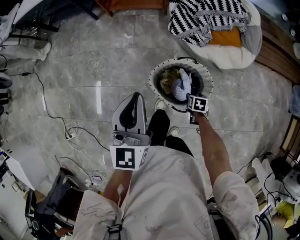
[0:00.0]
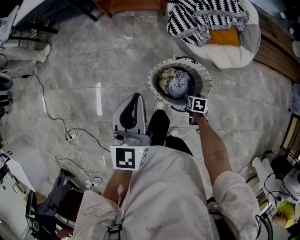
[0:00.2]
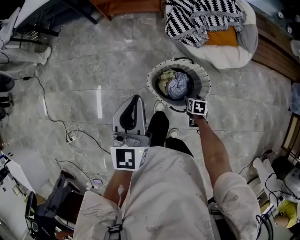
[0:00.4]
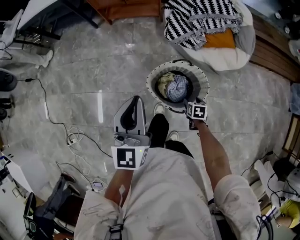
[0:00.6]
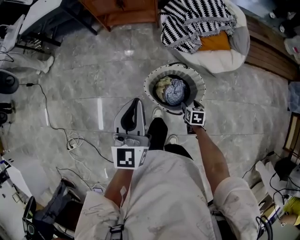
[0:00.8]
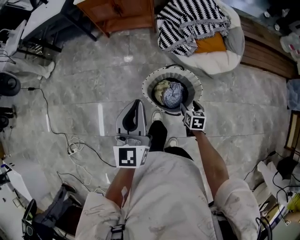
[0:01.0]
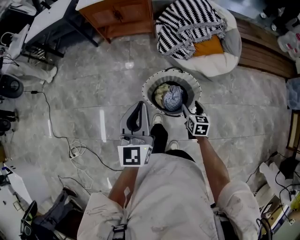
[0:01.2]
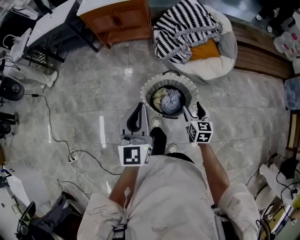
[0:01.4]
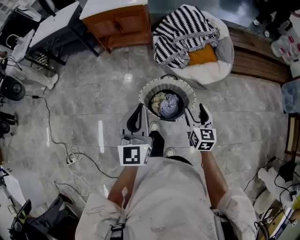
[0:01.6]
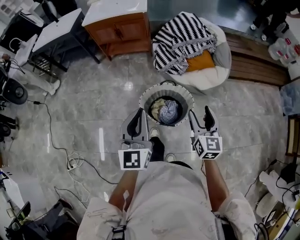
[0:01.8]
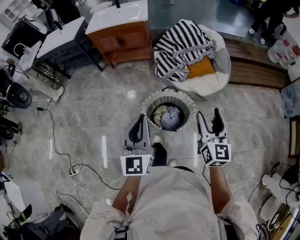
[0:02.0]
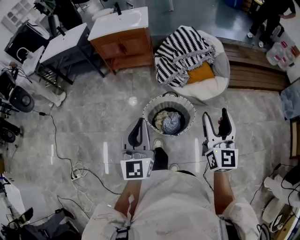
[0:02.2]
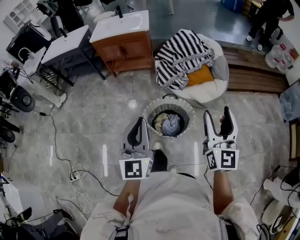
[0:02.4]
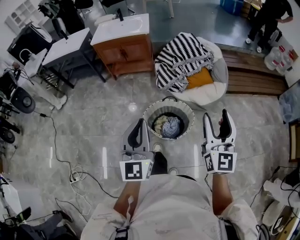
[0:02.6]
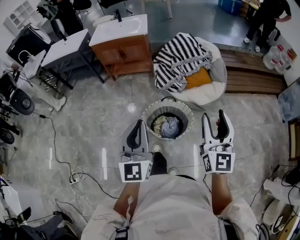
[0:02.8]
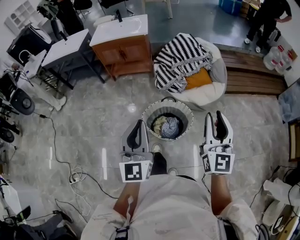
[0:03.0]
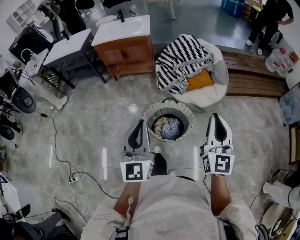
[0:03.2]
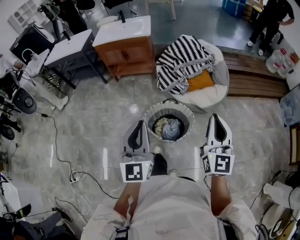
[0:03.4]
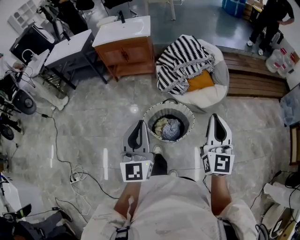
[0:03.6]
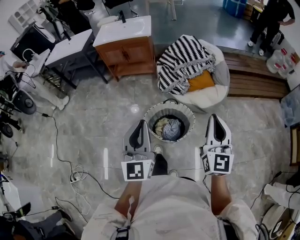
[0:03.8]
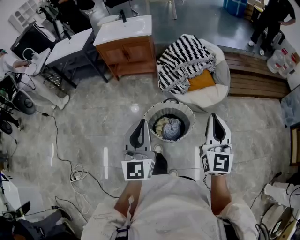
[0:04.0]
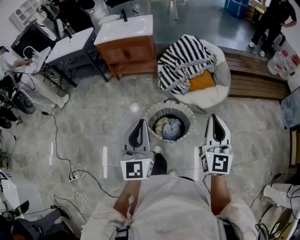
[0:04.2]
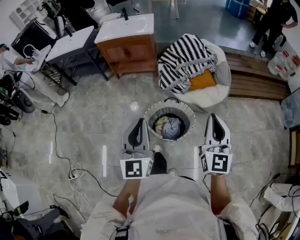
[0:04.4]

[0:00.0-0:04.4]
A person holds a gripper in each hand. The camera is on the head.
0:00.0 to 0:01.4: The right gripper heads upward, covering approximately 25 cm, and angles its fingers upward, by some 40 degrees, while the left gripper shifts by some 15 cm.
0:01.4 to 0:03.0: The left gripper shifts about 15 cm upward and backward. Meanwhile the right gripper travels upward by approximately 35 cm, angles its fingers upward, by about 40 degrees, and closes its fingers.
0:03.0 to 0:04.4: The right gripper closes.

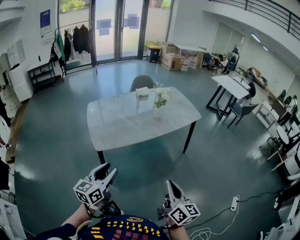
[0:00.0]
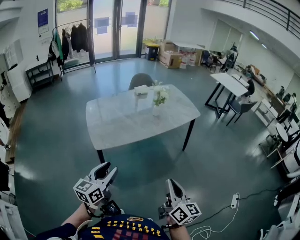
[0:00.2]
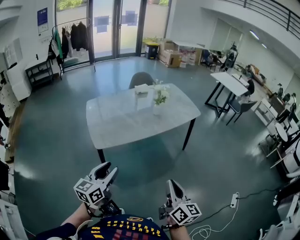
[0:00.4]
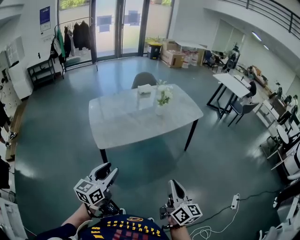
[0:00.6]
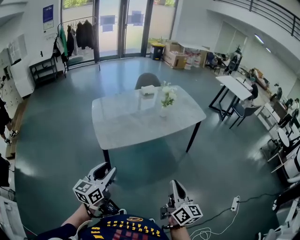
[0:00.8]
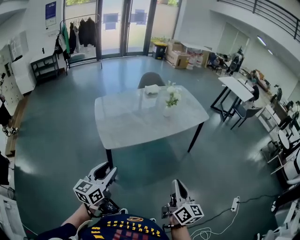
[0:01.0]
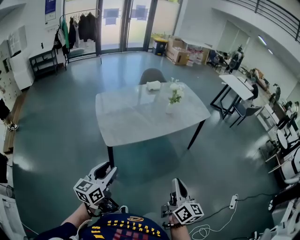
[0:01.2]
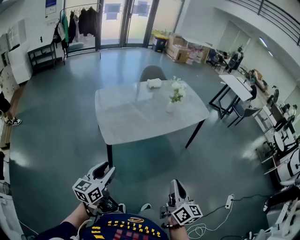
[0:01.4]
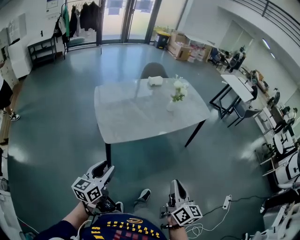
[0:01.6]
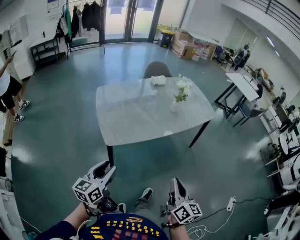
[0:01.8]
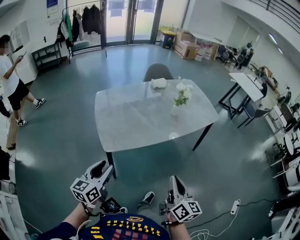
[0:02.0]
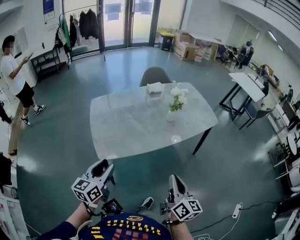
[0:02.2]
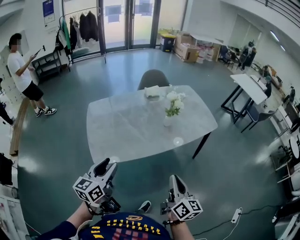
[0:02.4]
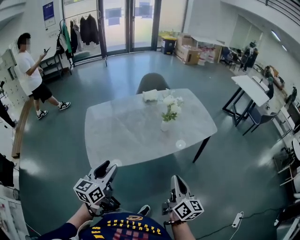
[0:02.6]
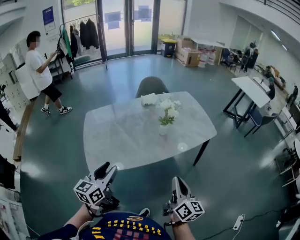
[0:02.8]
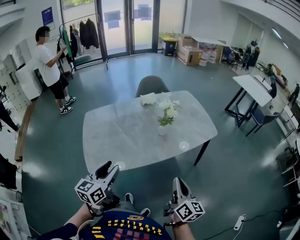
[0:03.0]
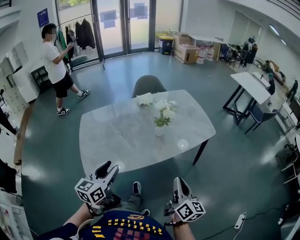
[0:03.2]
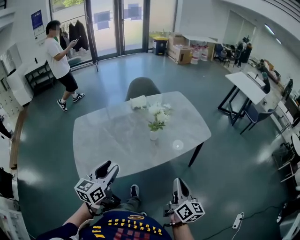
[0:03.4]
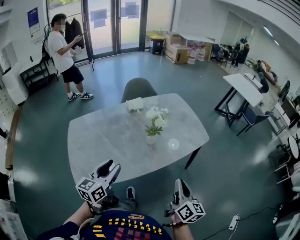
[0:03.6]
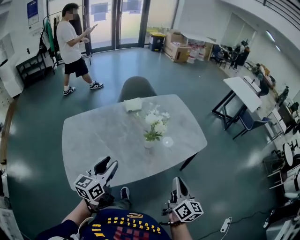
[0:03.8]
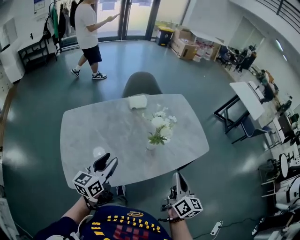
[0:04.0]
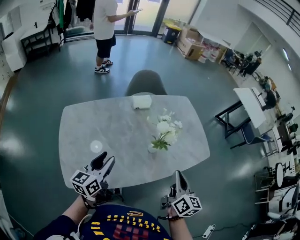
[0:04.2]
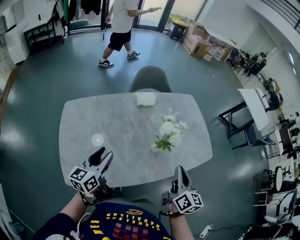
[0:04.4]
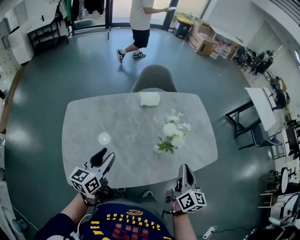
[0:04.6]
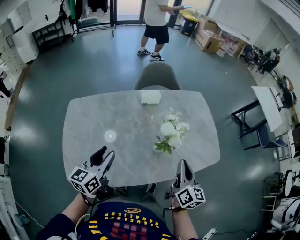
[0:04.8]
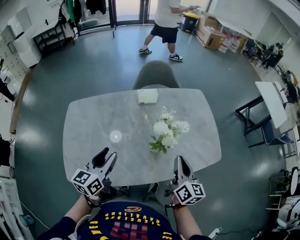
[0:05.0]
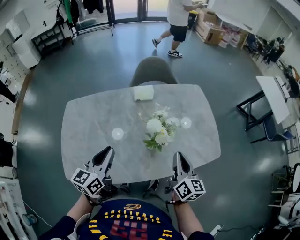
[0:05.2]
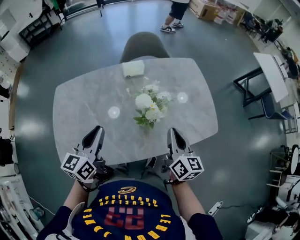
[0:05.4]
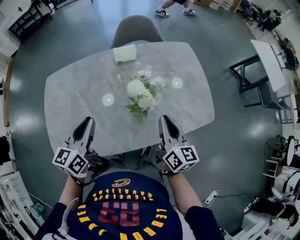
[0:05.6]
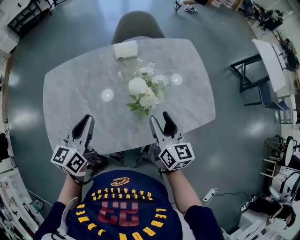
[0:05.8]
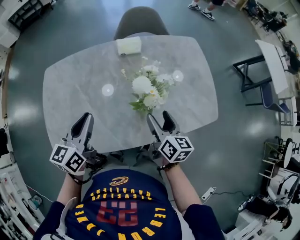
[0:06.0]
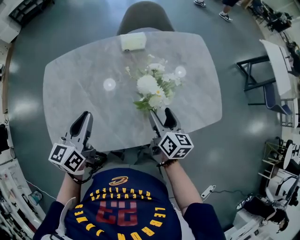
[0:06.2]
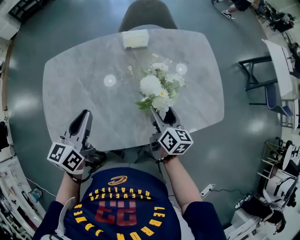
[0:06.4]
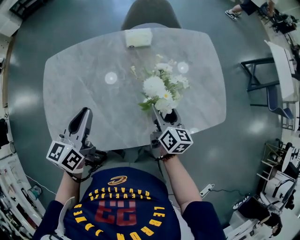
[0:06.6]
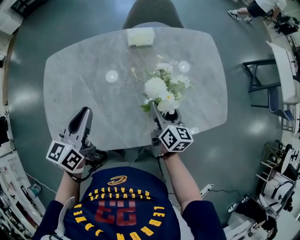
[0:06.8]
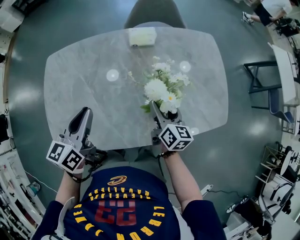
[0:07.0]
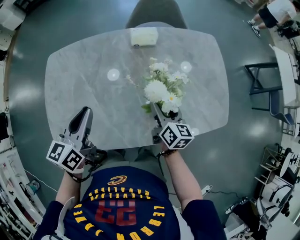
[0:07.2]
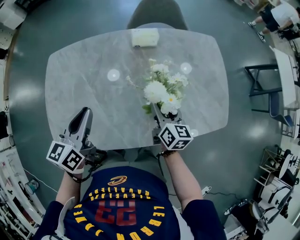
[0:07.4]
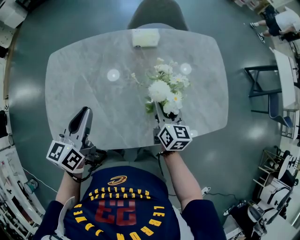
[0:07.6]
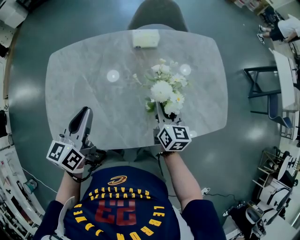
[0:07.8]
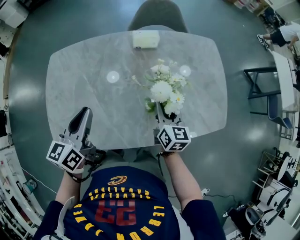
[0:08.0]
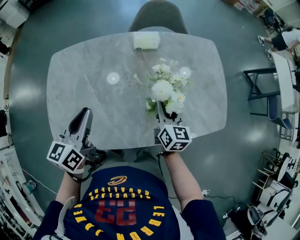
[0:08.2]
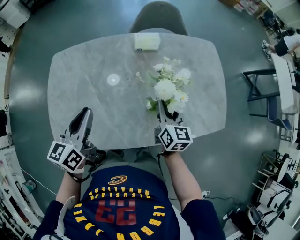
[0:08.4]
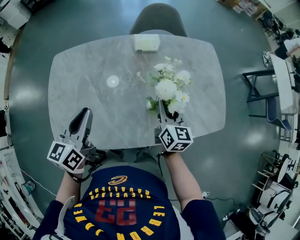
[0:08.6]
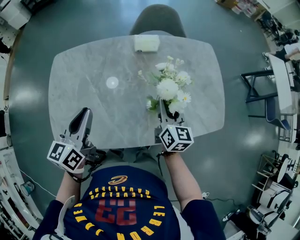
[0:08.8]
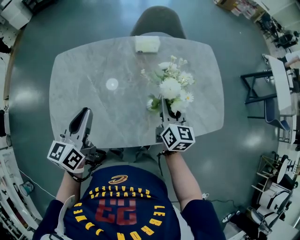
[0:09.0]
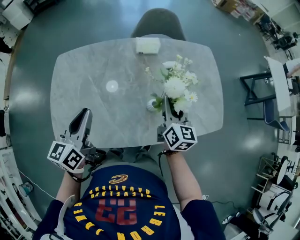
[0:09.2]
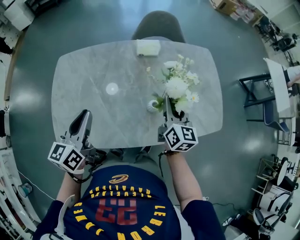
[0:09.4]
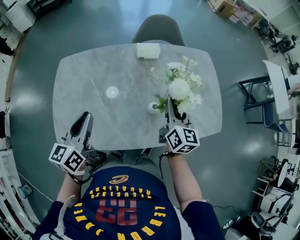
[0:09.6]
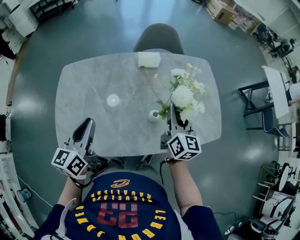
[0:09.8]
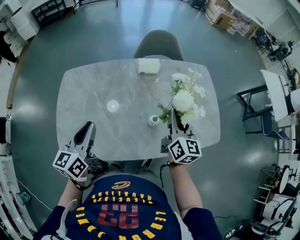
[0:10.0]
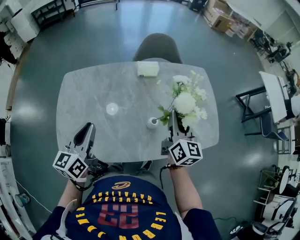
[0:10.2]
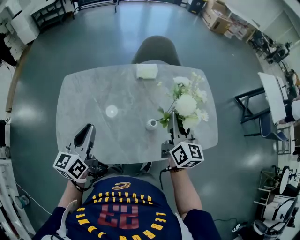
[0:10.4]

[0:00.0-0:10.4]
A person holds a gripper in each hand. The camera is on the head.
0:00.0 to 0:01.4: Both grippers travel together to the left, about 10 cm.
0:01.4 to 0:03.0: Both grippers move forward and to the right, about 35 cm.
0:03.0 to 0:04.4: Both grippers move forward, some 30 cm.
0:04.4 to 0:06.0: The left gripper goes roughly 10 cm to the right, and closes its fingers. The right gripper is displaced downward and forward by roughly 15 cm, changes its angle by some 20 degrees, and opens its fingers.
0:06.0 to 0:07.4: The right gripper travels forward and downward by about 10 cm. Meanwhile the left gripper ends up roughly 5 cm from where it was.
0:07.4 to 0:09.0: The left gripper moves about 5 cm. The right gripper travels upward by approximately 5 cm, and closes up.
0:09.0 to 0:10.4: The right gripper goes roughly 10 cm upward.

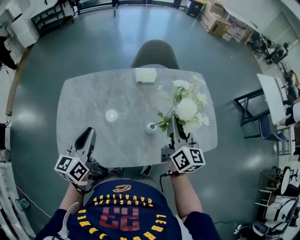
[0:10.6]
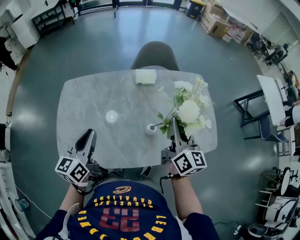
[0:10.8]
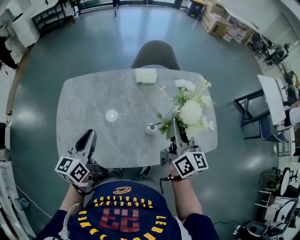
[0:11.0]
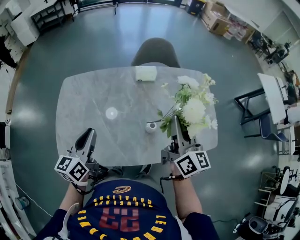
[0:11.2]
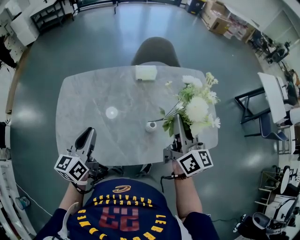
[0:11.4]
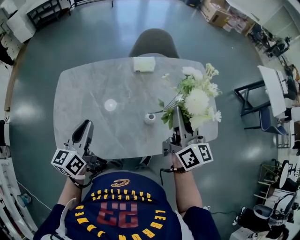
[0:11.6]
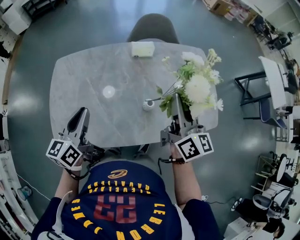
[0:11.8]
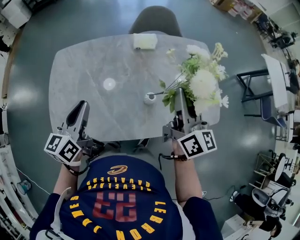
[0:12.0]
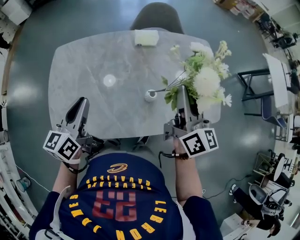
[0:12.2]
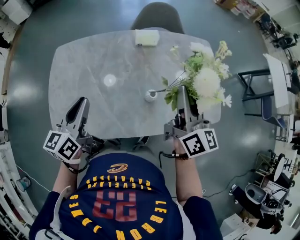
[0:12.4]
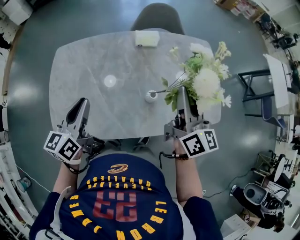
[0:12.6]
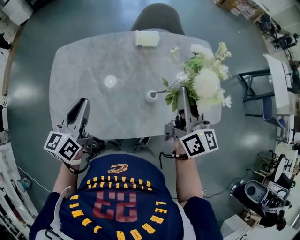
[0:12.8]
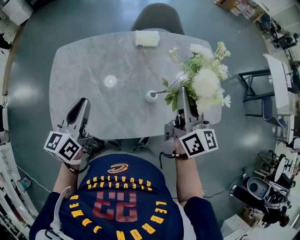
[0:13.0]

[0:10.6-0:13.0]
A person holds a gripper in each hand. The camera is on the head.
0:10.6 to 0:13.0: The grippers stay close to where they were, moving slightly.

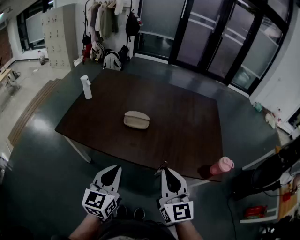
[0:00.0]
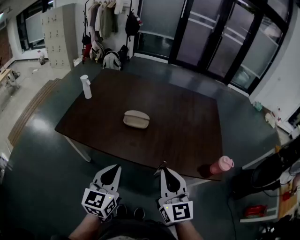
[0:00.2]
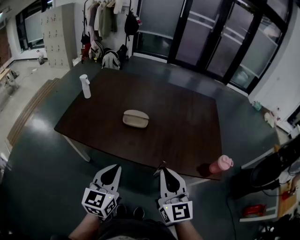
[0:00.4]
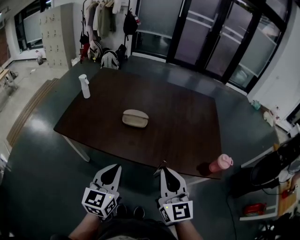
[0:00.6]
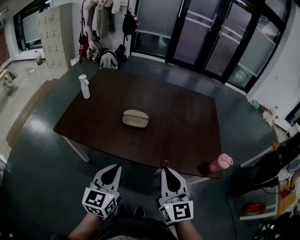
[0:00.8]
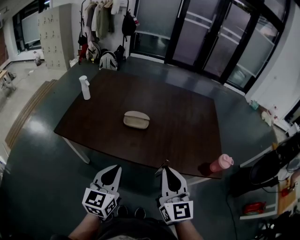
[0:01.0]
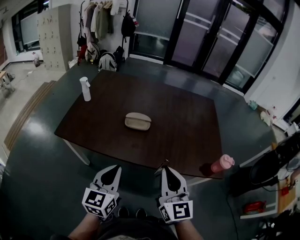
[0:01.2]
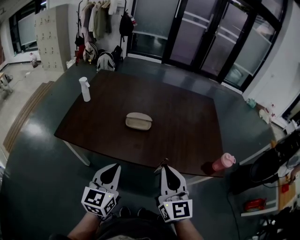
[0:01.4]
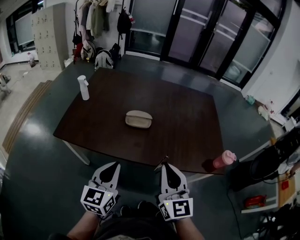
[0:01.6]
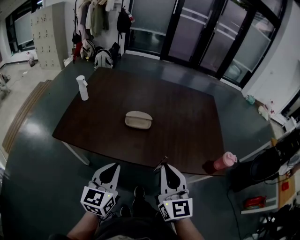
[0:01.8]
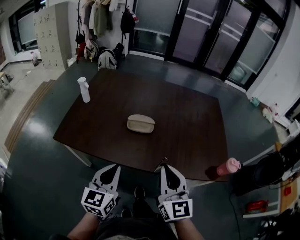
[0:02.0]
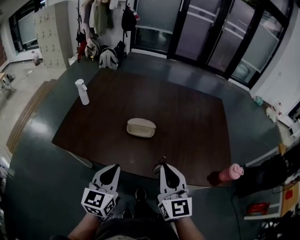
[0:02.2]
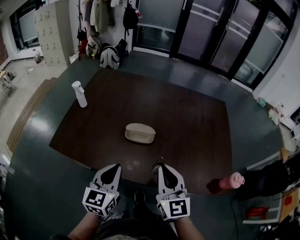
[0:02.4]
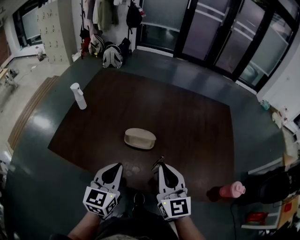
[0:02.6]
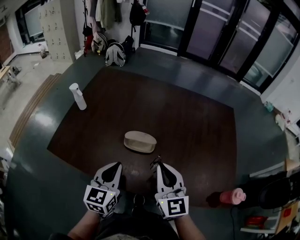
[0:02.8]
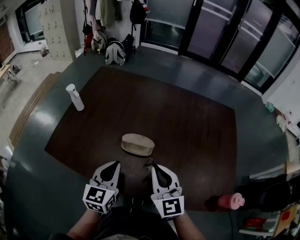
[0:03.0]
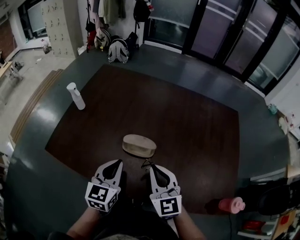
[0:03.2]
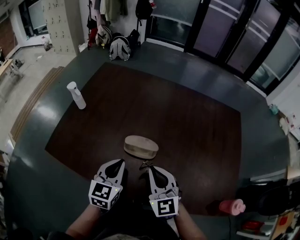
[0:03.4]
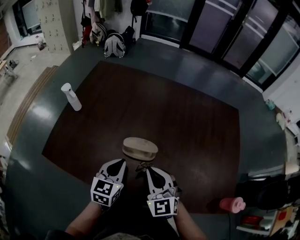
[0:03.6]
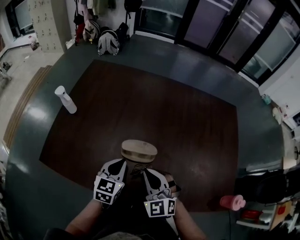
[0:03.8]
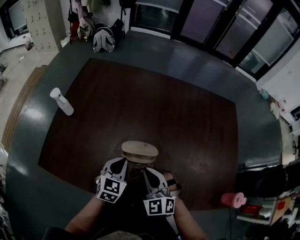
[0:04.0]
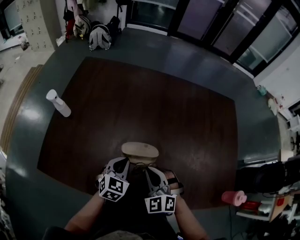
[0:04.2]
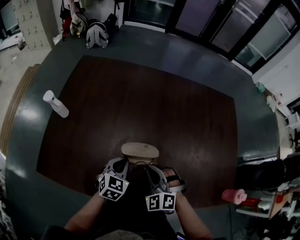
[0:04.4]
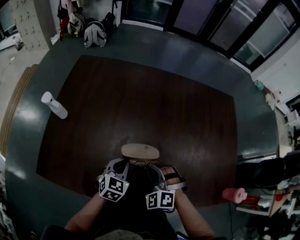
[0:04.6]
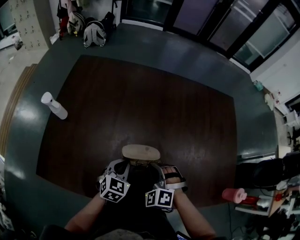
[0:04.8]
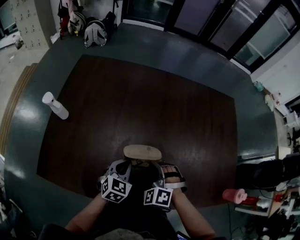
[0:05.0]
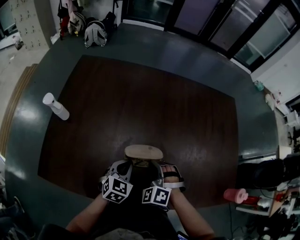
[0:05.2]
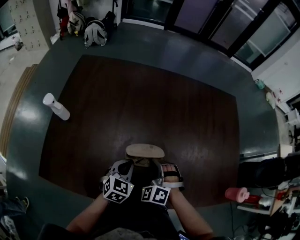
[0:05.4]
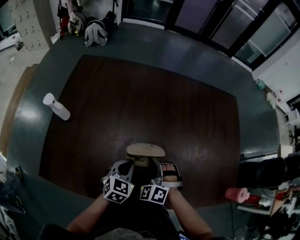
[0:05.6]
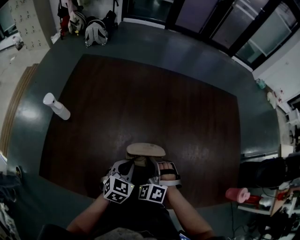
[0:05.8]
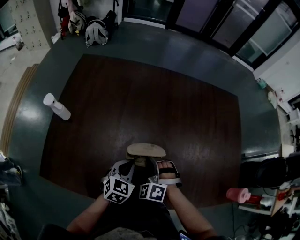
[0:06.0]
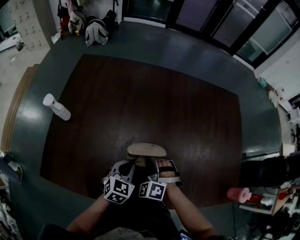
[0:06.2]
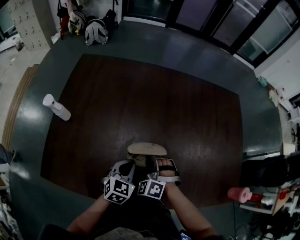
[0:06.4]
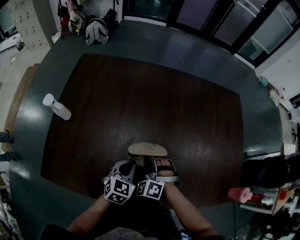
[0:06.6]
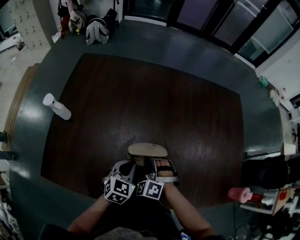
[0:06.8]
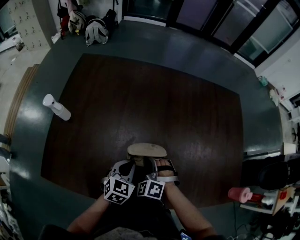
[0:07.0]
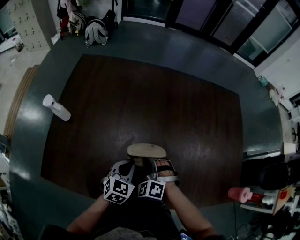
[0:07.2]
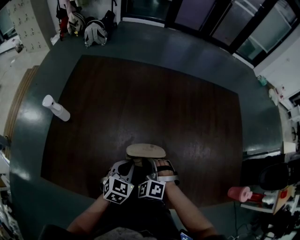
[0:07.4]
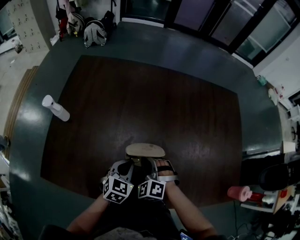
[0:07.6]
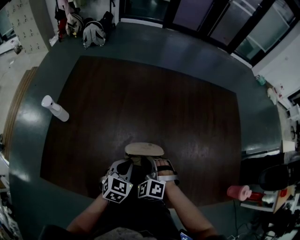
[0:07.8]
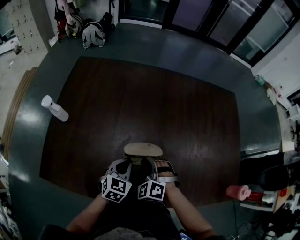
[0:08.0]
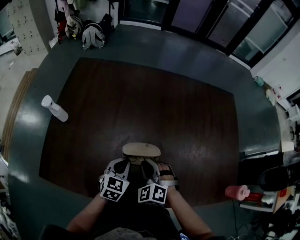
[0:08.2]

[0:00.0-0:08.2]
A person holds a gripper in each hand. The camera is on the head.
0:00.0 to 0:01.6: Both grippers travel together to the left, approximately 5 cm.
0:01.6 to 0:03.2: Both grippers travel together forward, roughly 25 cm. The right gripper swivels approximately 20 degrees.
0:03.2 to 0:05.0: The two grippers go about 15 cm downward and forward. The left gripper turns by about 30 degrees, while the right gripper angles its fingers downward, by approximately 30 degrees.
0:05.0 to 0:06.6: The right gripper ends up approximately 5 cm from where it was.
0:06.6 to 0:08.2: The grippers stay close to where they were, moving slightly.
